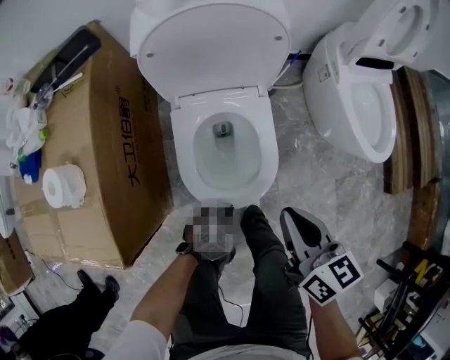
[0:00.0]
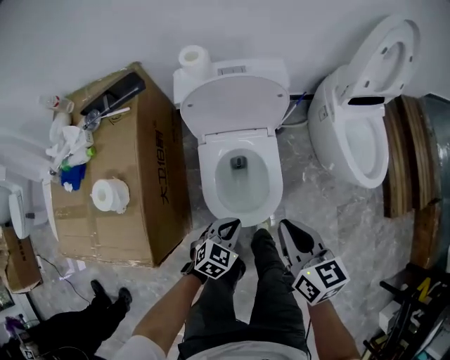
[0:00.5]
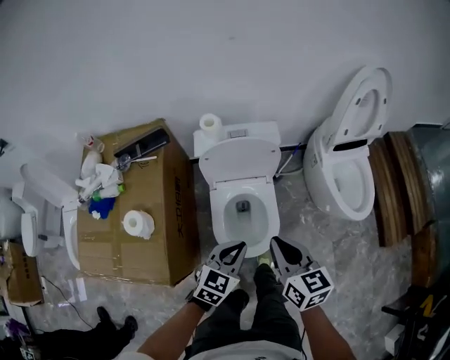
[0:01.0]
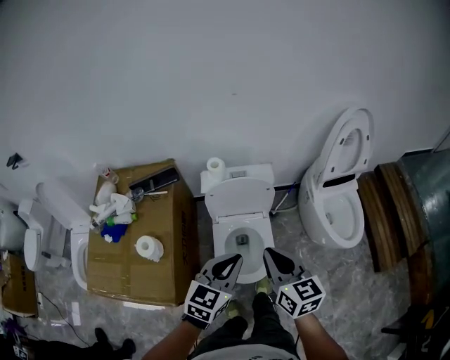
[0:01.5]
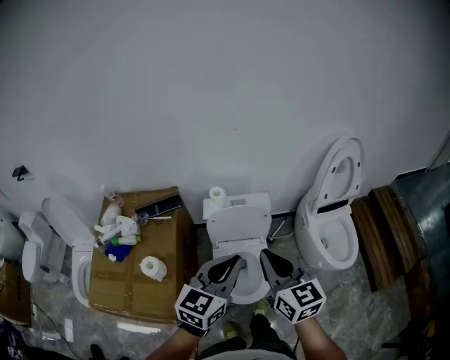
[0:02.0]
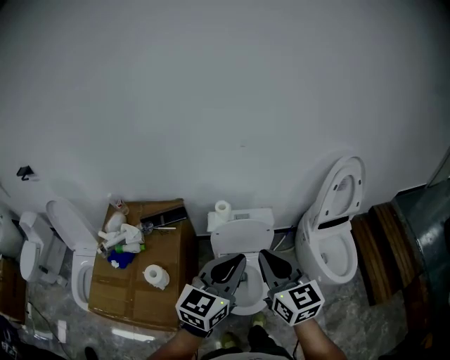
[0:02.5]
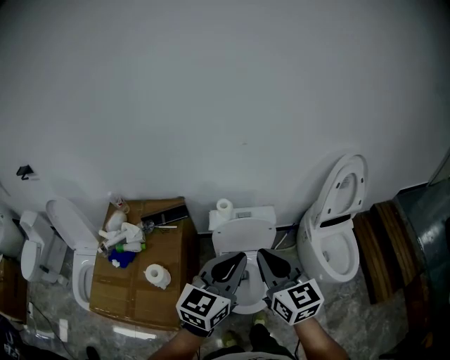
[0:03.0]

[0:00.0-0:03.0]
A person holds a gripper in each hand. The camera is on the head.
0:00.0 to 0:01.5: The left gripper is displaced upward by approximately 60 cm, and tilts its fingers roughly 30 degrees upward, while the right gripper shifts about 30 cm upward, and rotates roughly 20 degrees.
0:01.5 to 0:03.0: The two grippers go roughly 15 cm upward.

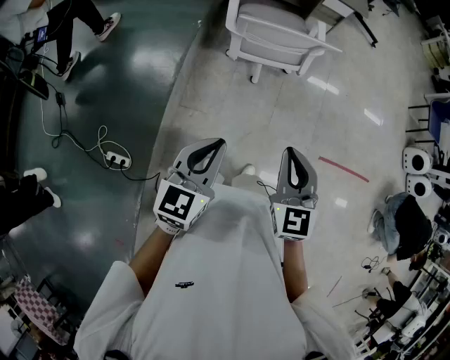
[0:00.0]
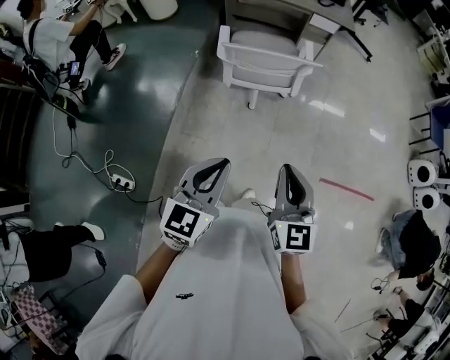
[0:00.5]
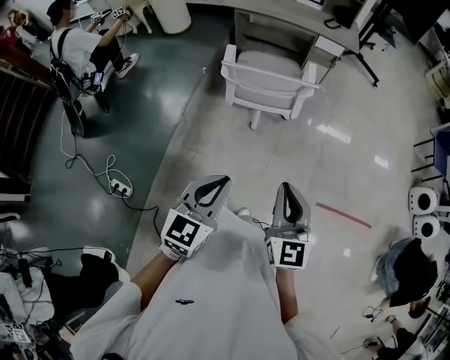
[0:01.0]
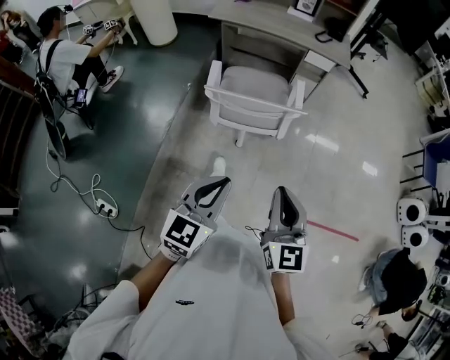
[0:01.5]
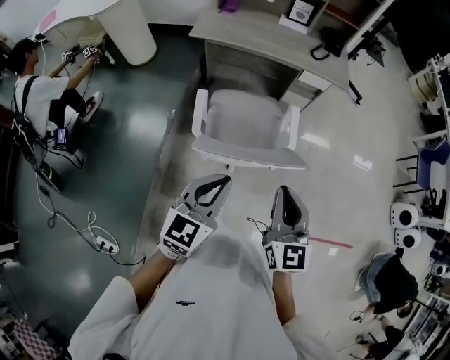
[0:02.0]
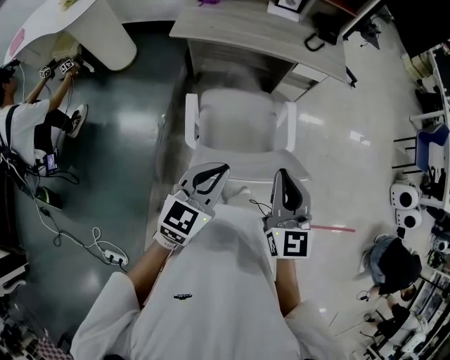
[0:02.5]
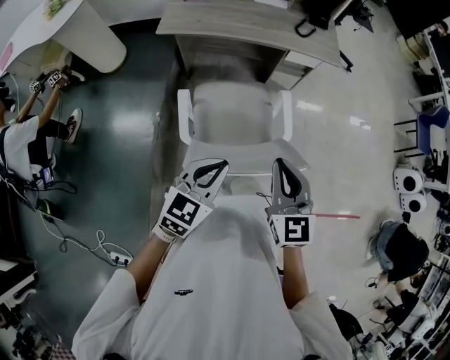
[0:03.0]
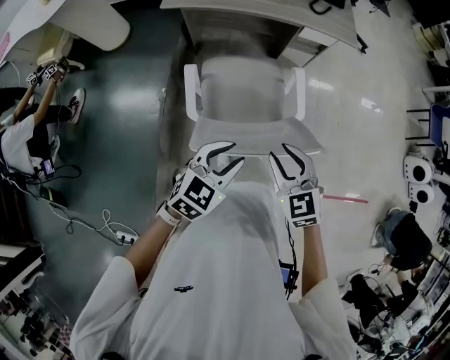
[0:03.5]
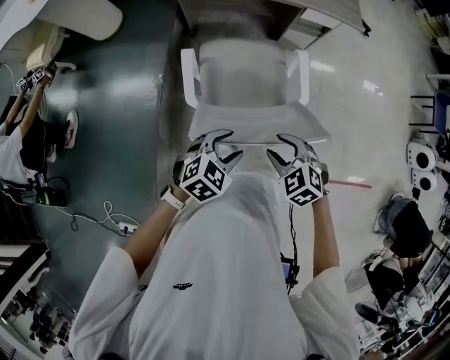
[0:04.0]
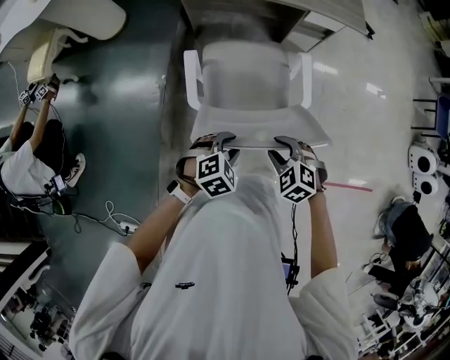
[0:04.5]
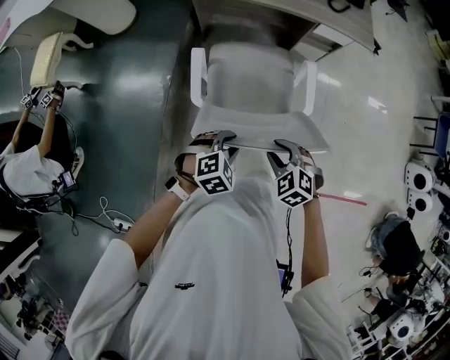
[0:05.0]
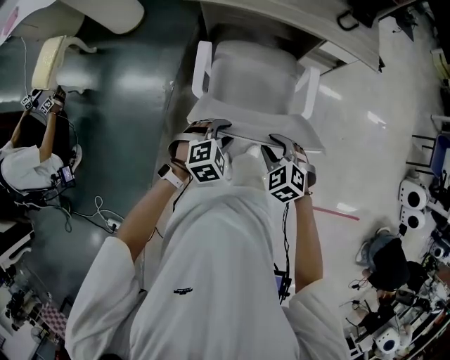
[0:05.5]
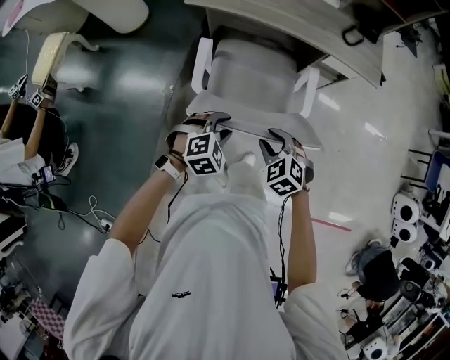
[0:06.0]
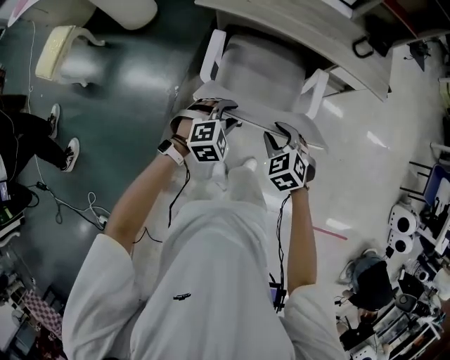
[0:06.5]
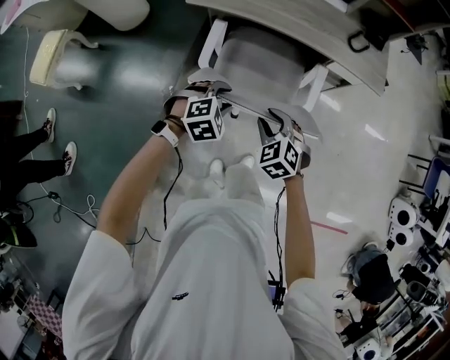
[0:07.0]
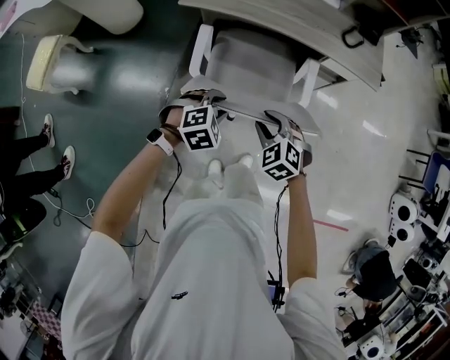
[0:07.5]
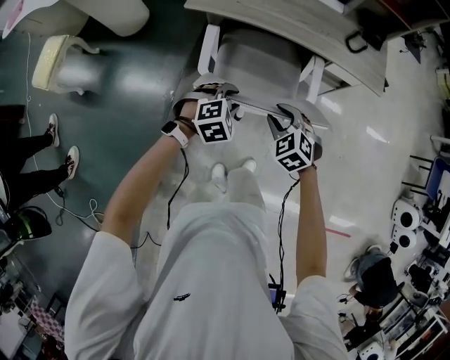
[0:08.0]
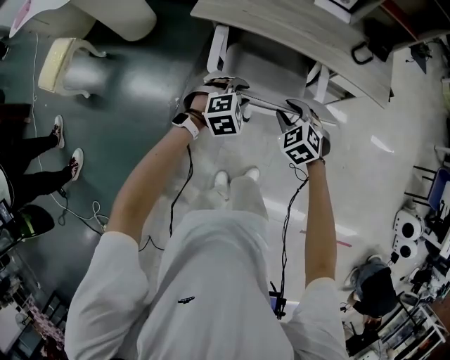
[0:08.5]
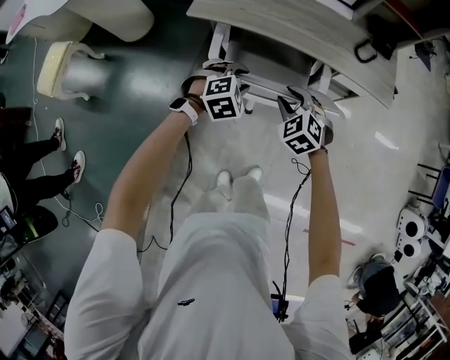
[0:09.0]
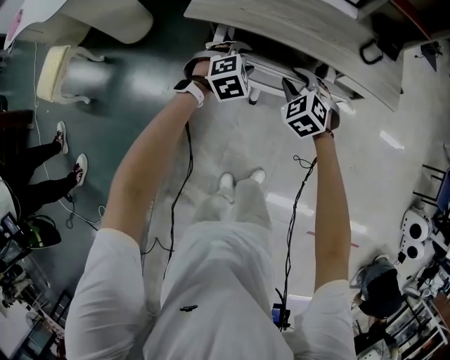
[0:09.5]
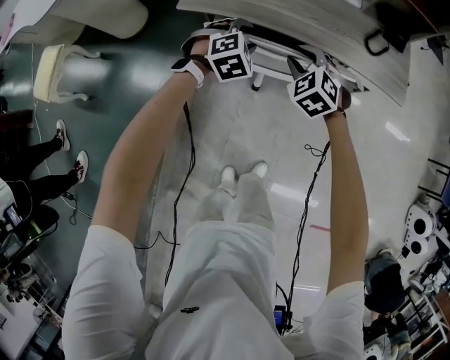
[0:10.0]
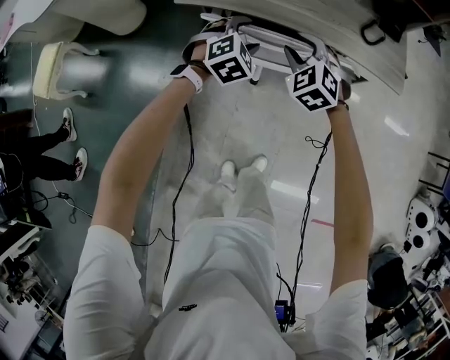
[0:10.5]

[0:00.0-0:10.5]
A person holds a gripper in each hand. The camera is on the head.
0:00.0 to 0:02.0: The two grippers go about 35 cm forward.
0:02.0 to 0:04.0: The grippers both shift downward by about 20 cm. The right gripper angles its fingers downward, by approximately 50 degrees, and opens its fingers. The left gripper tips its fingers downward by approximately 30 degrees, and opens its fingers.
0:04.0 to 0:06.5: The two grippers go about 20 cm forward. The left gripper rotates approximately 20 degrees.
0:06.5 to 0:08.5: Both grippers travel together forward, roughly 10 cm.
0:08.5 to 0:10.5: Both grippers move forward, roughly 15 cm. The left gripper opens.

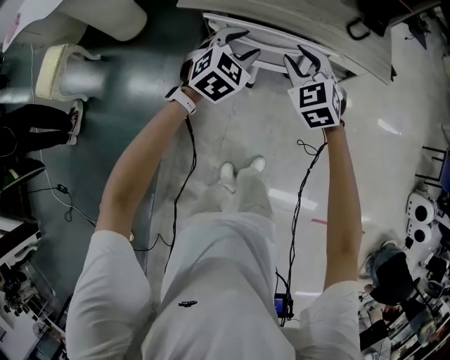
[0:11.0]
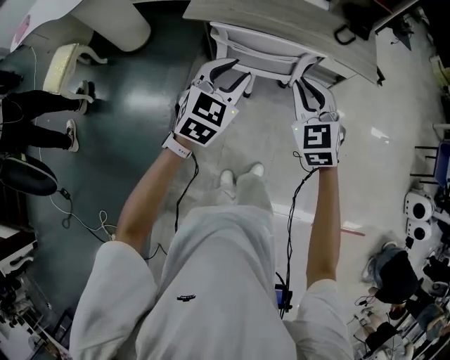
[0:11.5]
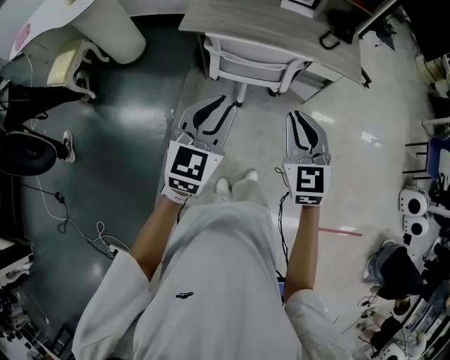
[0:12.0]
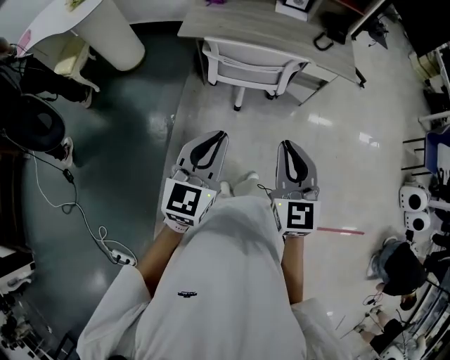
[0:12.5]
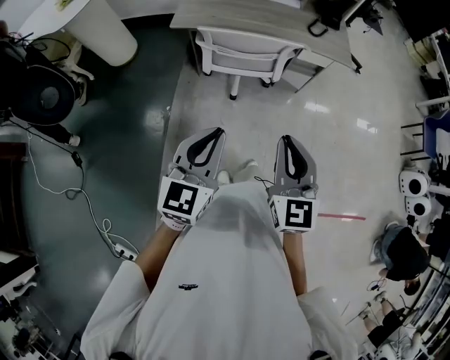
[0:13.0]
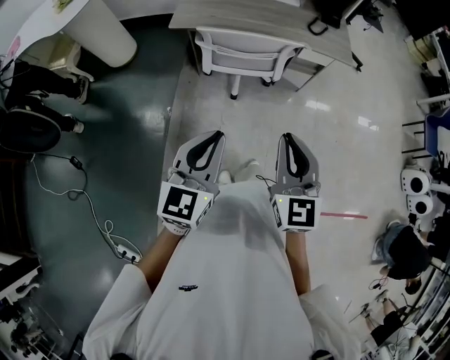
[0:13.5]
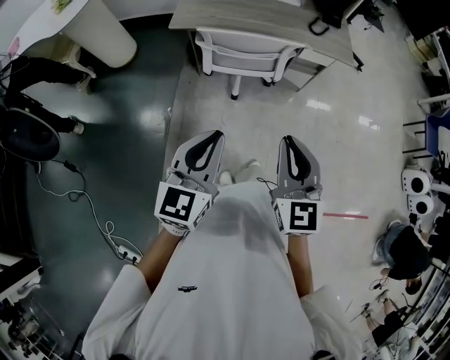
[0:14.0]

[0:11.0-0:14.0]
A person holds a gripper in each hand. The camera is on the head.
0:11.0 to 0:12.5: Both grippers travel together backward and upward, roughly 35 cm. The right gripper changes its angle by roughly 30 degrees, and closes up. The left gripper changes its angle by some 40 degrees, and closes its fingers.
0:12.5 to 0:14.0: The grippers make only small movements.

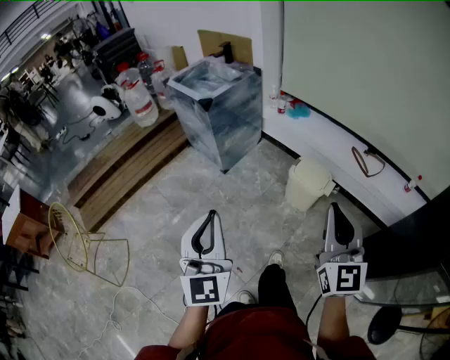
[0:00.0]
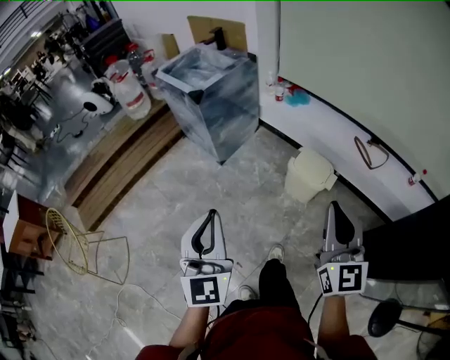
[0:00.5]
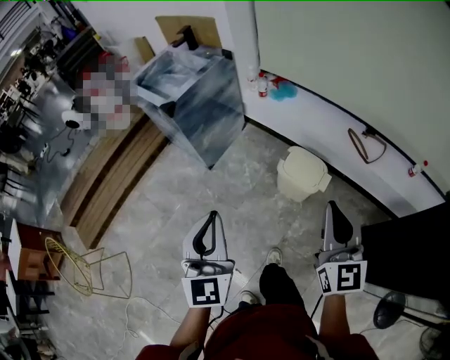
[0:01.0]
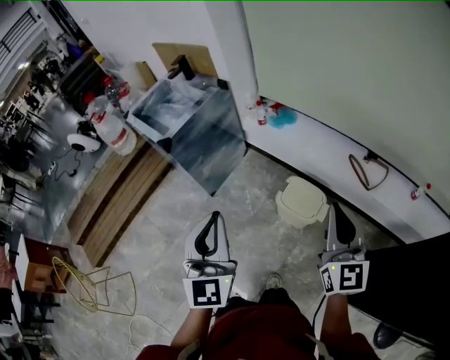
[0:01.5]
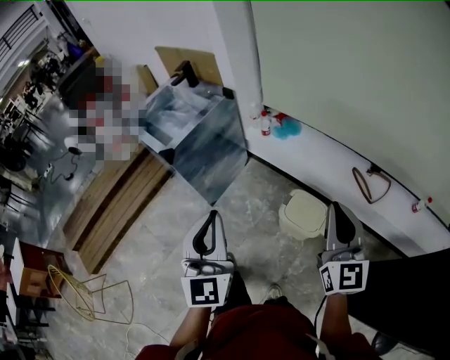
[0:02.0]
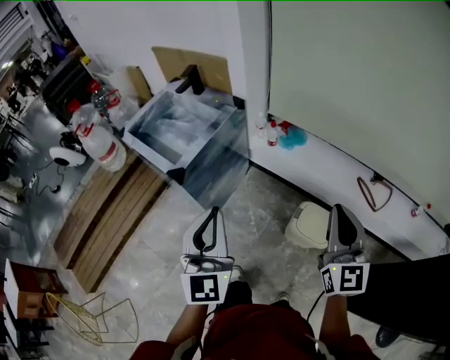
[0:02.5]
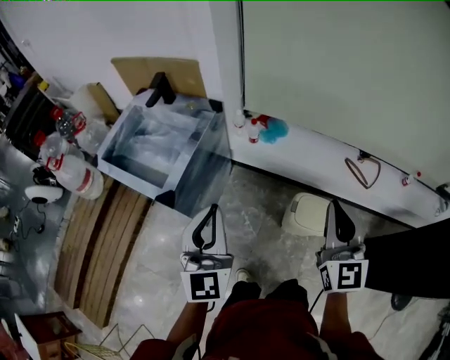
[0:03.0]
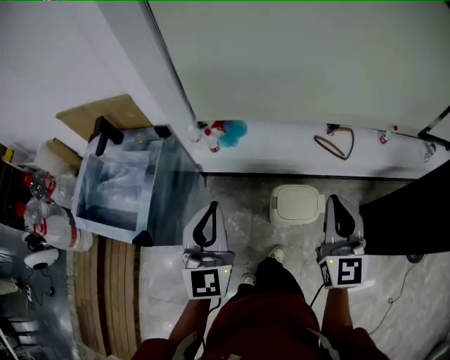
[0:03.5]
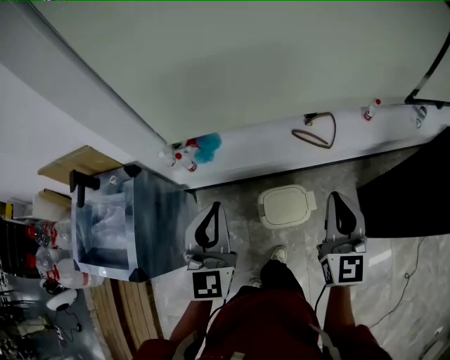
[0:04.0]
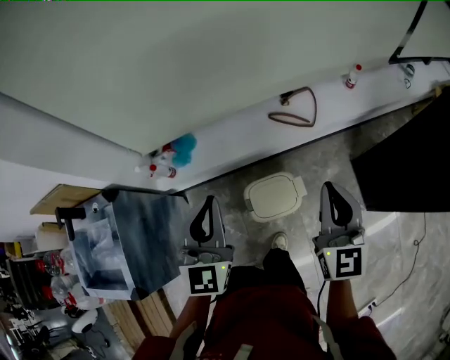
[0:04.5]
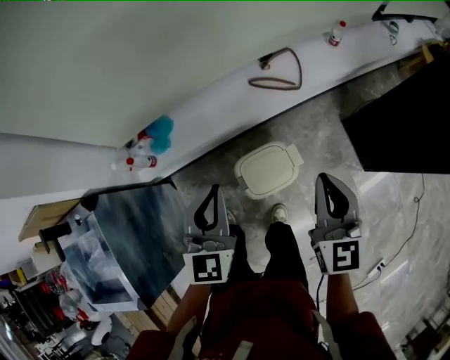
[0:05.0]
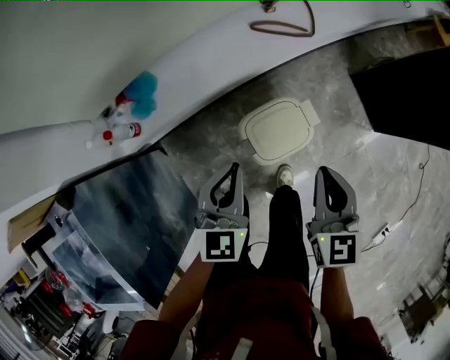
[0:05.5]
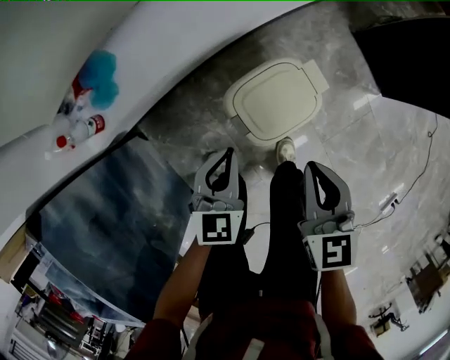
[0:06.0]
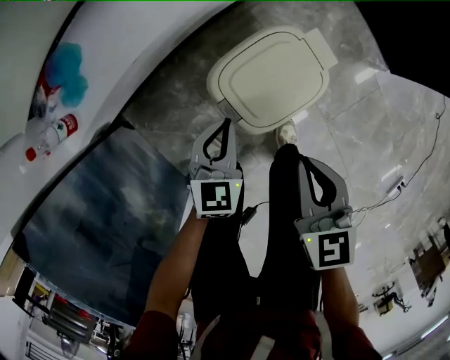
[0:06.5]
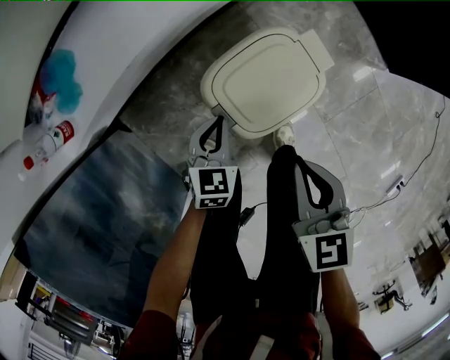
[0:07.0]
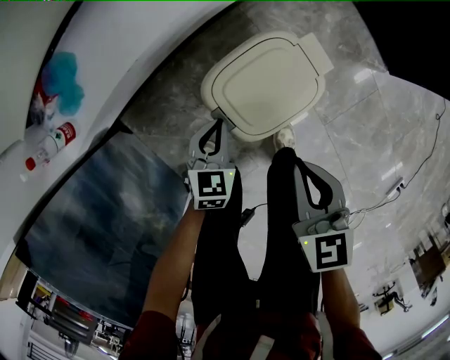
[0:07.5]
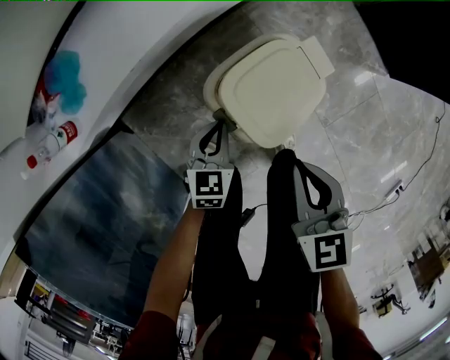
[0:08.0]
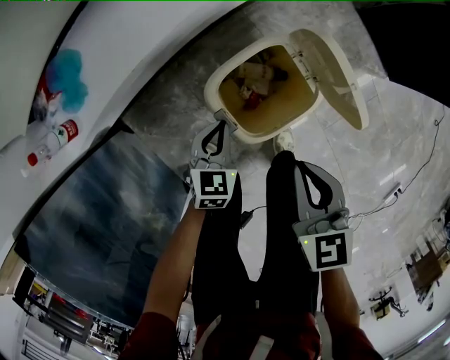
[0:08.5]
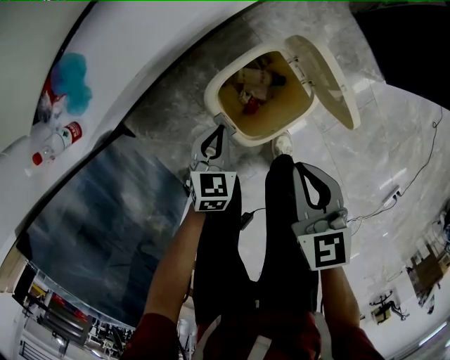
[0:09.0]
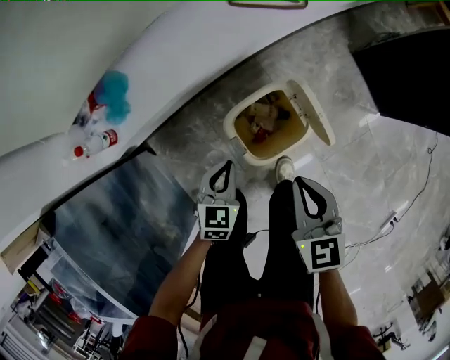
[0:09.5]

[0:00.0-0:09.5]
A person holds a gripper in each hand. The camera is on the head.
0:00.0 to 0:02.0: Both grippers travel together forward, approximately 35 cm.
0:02.0 to 0:04.0: The right gripper rotates roughly 40 degrees; the left gripper moves roughly 30 cm, and turns by some 50 degrees.
0:04.0 to 0:05.5: Both grippers move downward, roughly 30 cm. The right gripper changes its angle by some 30 degrees, while the left gripper turns by some 40 degrees.
0:05.5 to 0:07.5: The left gripper travels downward by roughly 35 cm, and changes its angle by about 20 degrees. The right gripper travels downward by approximately 25 cm.
0:07.5 to 0:09.5: Both grippers travel together upward, approximately 10 cm.
